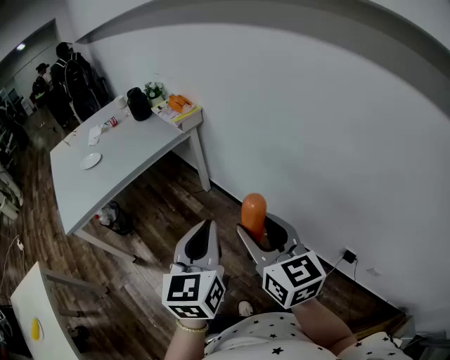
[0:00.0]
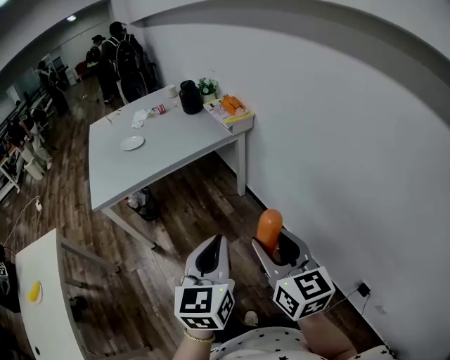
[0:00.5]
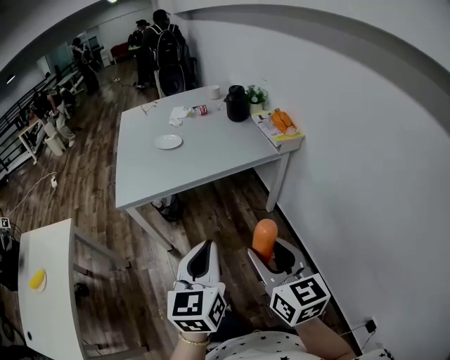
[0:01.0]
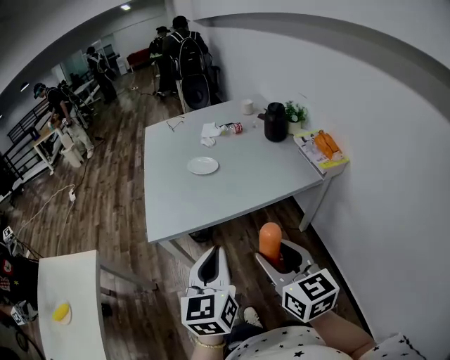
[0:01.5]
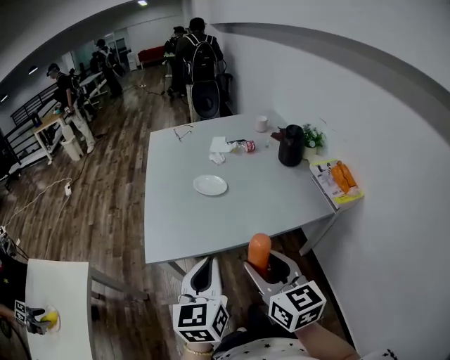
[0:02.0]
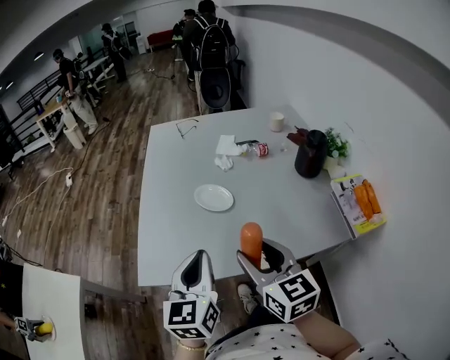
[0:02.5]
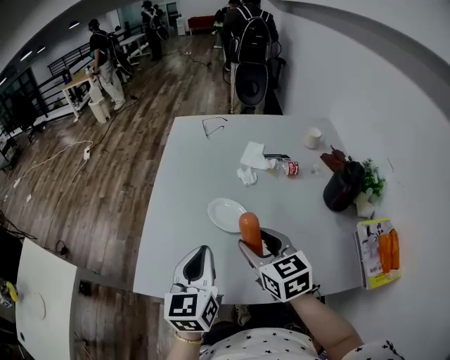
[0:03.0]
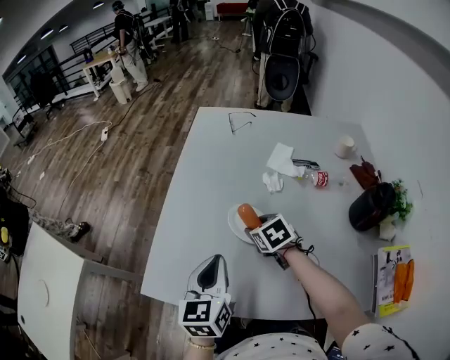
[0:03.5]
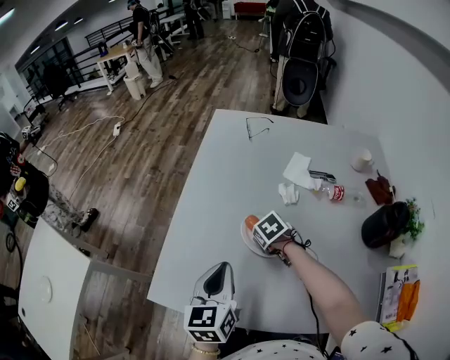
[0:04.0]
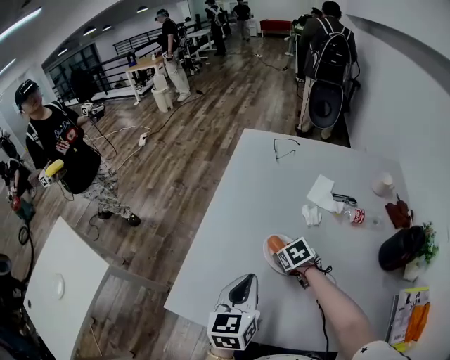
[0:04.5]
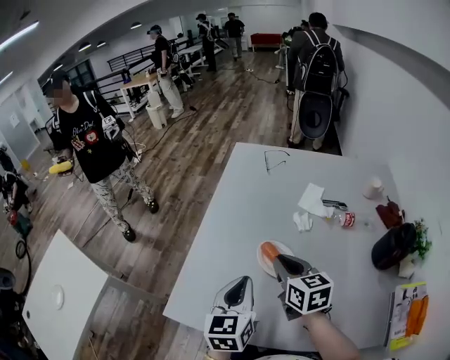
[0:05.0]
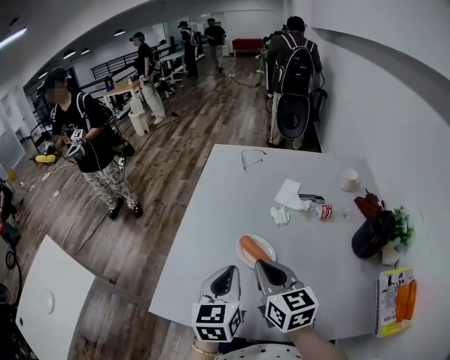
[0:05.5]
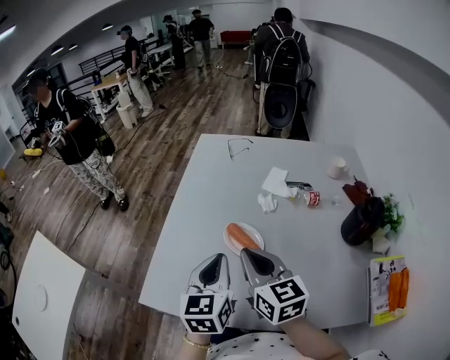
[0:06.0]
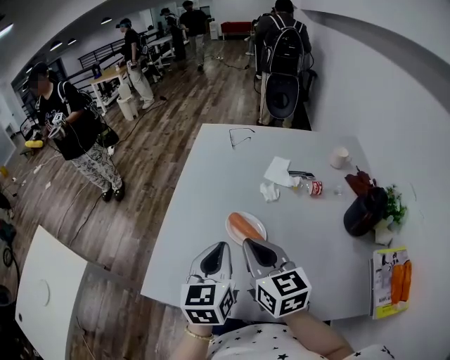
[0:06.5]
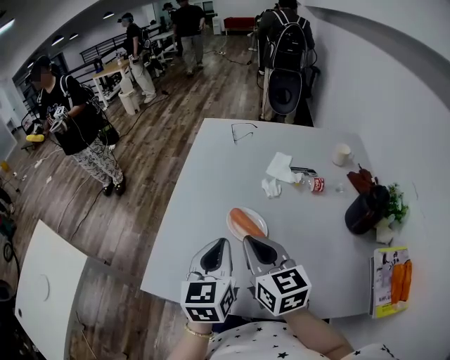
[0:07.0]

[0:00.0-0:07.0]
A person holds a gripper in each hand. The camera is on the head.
0:00.0 to 0:02.0: The two grippers travel together, about 60 cm. The left gripper swivels roughly 30 degrees. Meanwhile the right gripper turns by approximately 30 degrees.
0:02.0 to 0:03.5: The left gripper shifts by some 35 cm, and turns by some 20 degrees. Meanwhile the right gripper ends up some 50 cm from where it was, and tips its fingers downward by roughly 40 degrees.
0:03.5 to 0:05.0: The right gripper moves upward, some 10 cm, tilts its fingers roughly 30 degrees upward, and closes its fingers.
0:05.0 to 0:07.0: The right gripper moves backward and upward, some 10 cm.

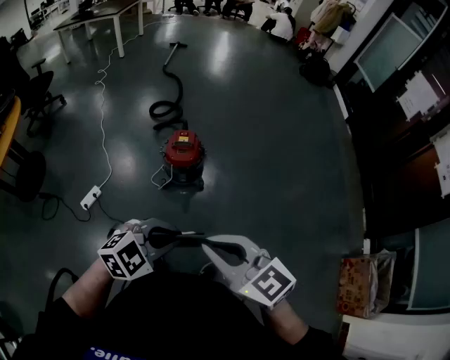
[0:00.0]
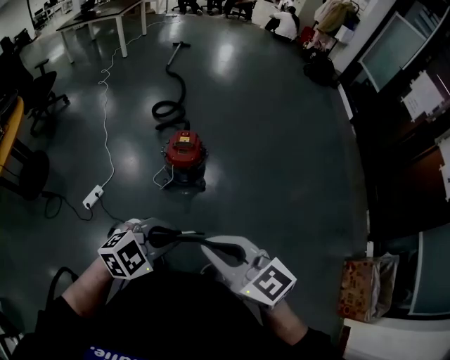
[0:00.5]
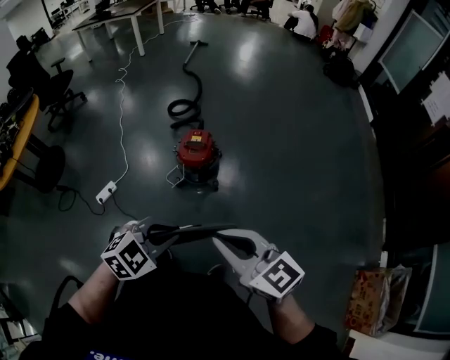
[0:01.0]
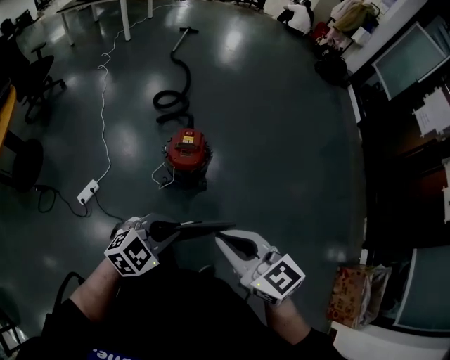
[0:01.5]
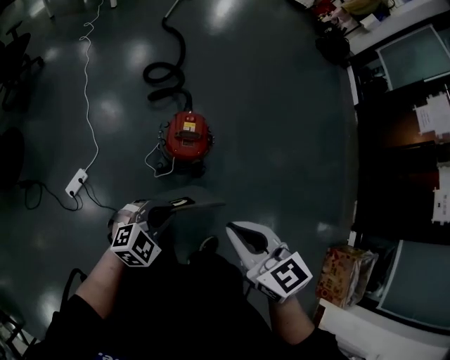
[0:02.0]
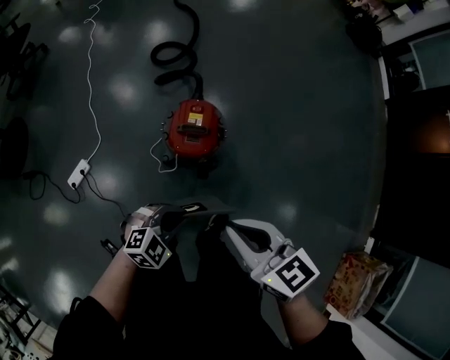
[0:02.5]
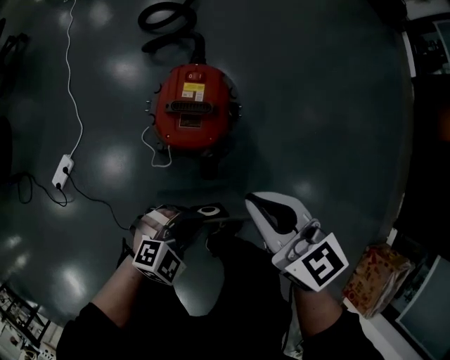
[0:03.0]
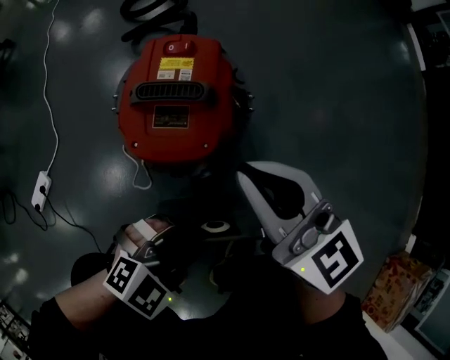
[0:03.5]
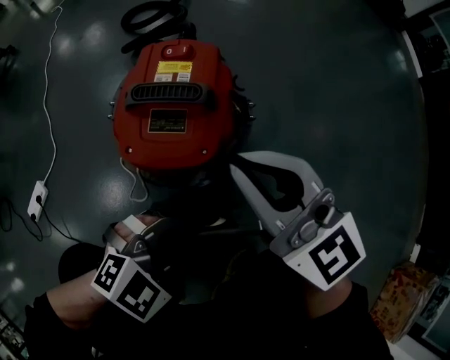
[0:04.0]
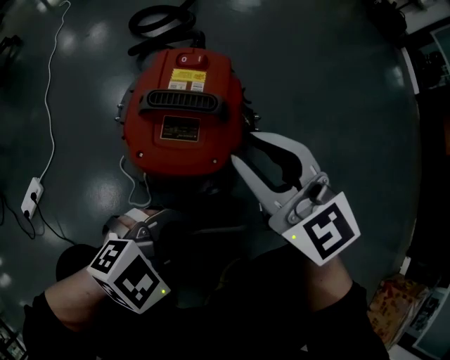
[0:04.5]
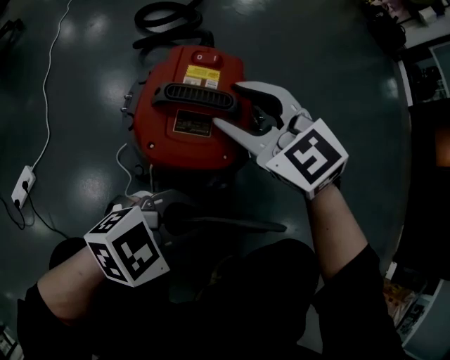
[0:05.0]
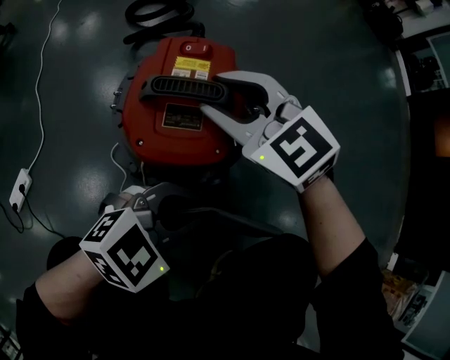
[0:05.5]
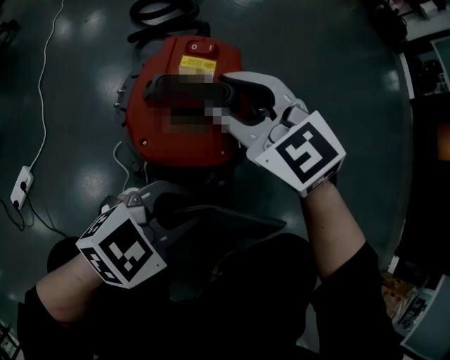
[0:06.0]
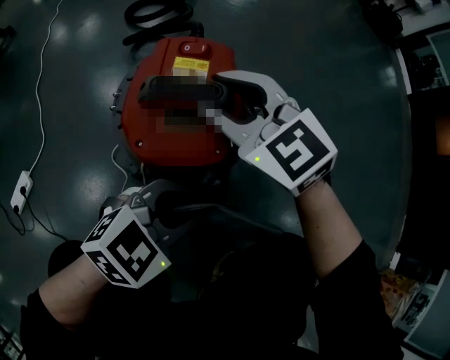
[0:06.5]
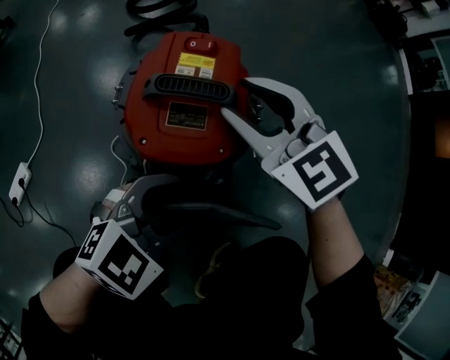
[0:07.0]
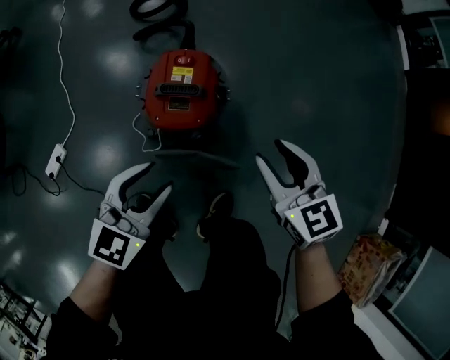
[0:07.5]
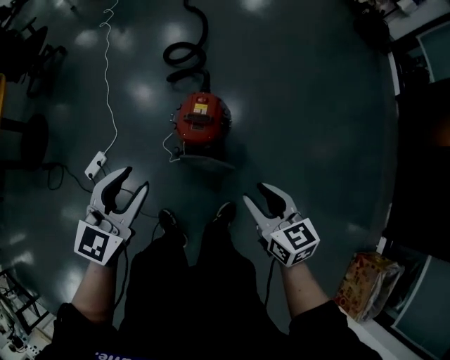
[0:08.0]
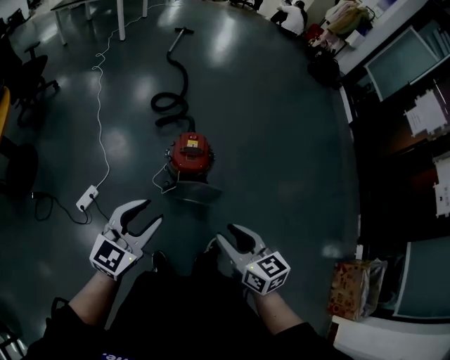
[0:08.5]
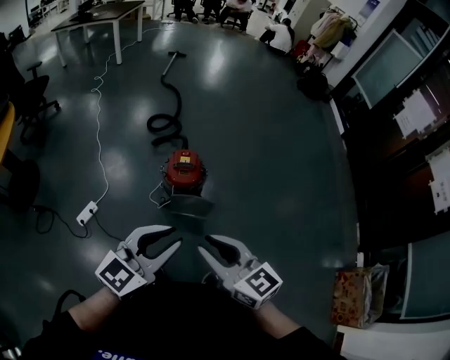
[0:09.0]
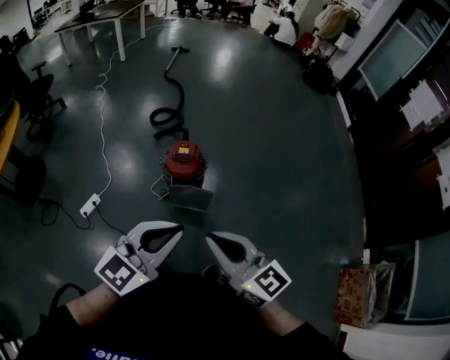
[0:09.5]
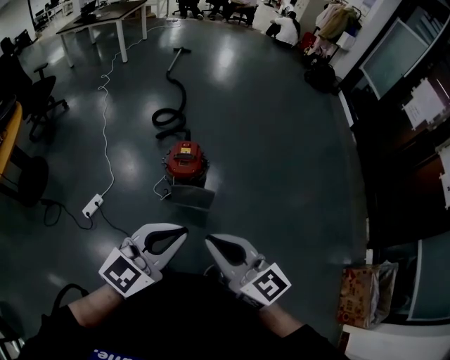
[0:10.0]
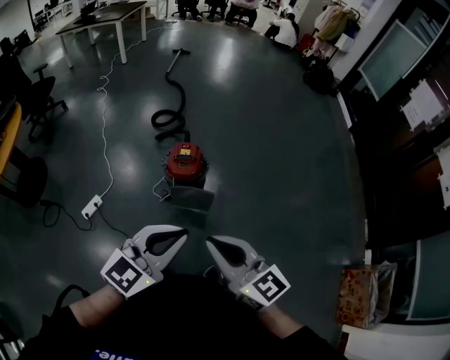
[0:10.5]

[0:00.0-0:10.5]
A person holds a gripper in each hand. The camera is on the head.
0:00.0 to 0:02.0: The right gripper heads forward, covering about 25 cm; the left gripper heads forward, downward and to the left, covering approximately 30 cm.
0:02.0 to 0:04.0: The right gripper moves downward and forward, about 50 cm, and rotates about 30 degrees. Meanwhile the left gripper shifts some 40 cm downward.
0:04.0 to 0:06.5: The right gripper moves approximately 15 cm, changes its angle by about 20 degrees, and opens. The left gripper ends up about 5 cm from where it was.
0:06.5 to 0:08.5: The right gripper is displaced upward and backward by about 60 cm, and rolls clockwise, seen from behind, by some 50 degrees, while the left gripper heads upward, covering roughly 60 cm, and rotates roughly 40 degrees.
0:08.5 to 0:10.5: The left gripper travels to the right, backward and upward by about 20 cm, and closes up; the right gripper goes roughly 15 cm upward and backward, changes its angle by approximately 20 degrees, and closes up.

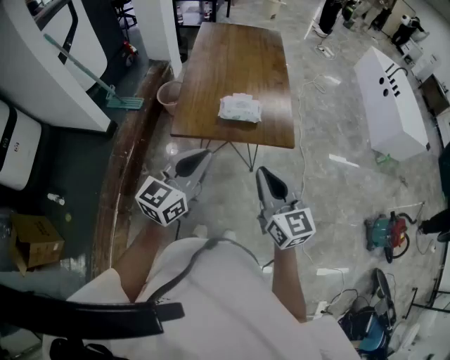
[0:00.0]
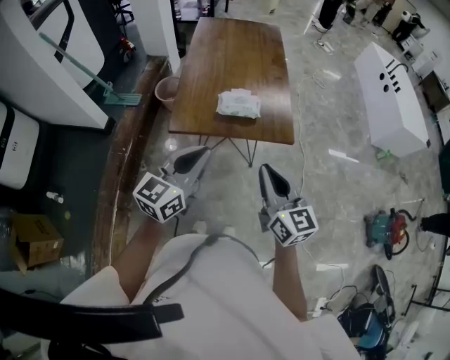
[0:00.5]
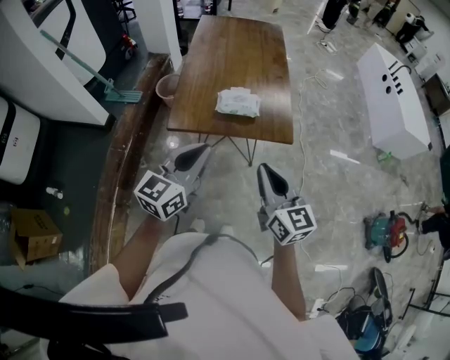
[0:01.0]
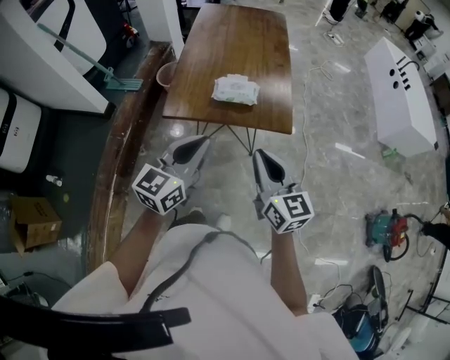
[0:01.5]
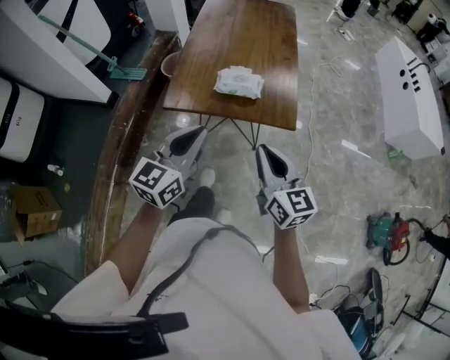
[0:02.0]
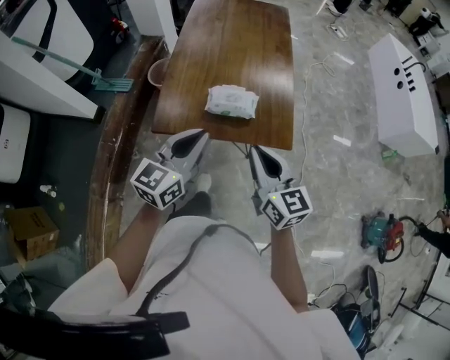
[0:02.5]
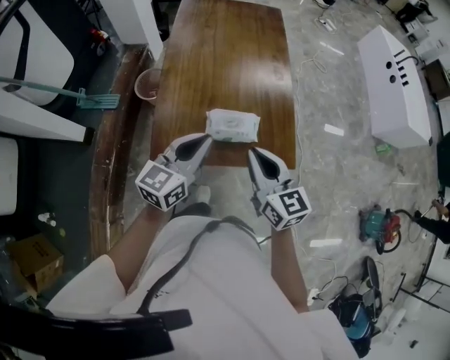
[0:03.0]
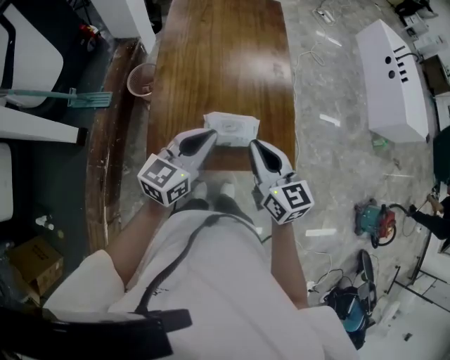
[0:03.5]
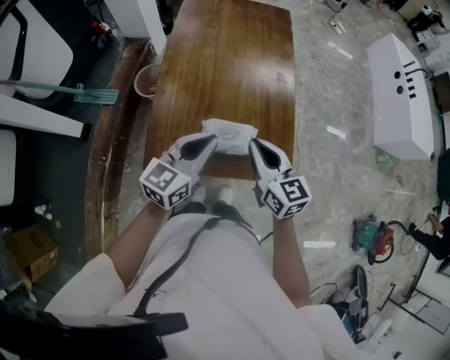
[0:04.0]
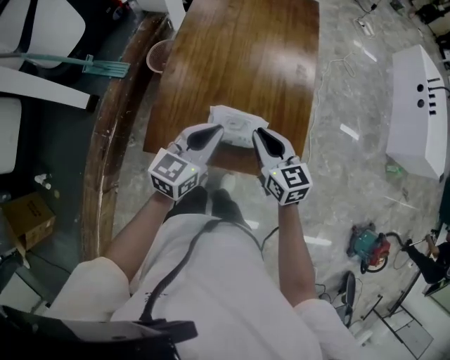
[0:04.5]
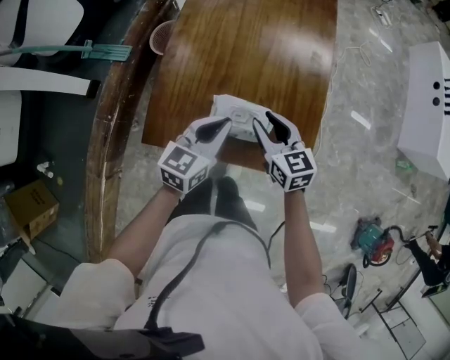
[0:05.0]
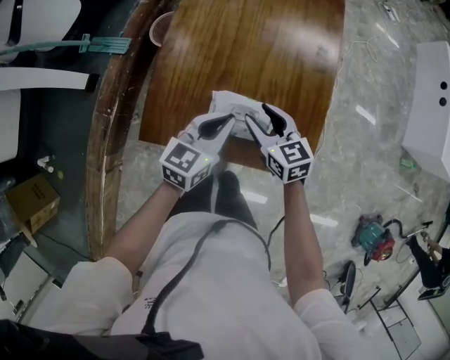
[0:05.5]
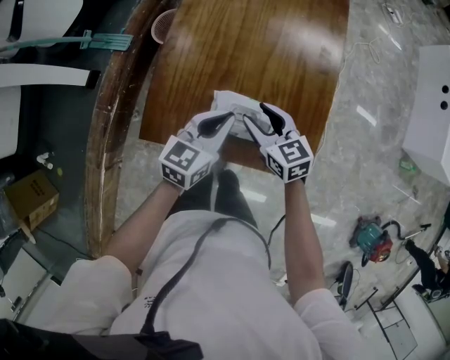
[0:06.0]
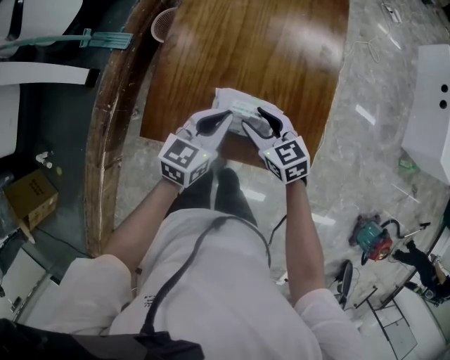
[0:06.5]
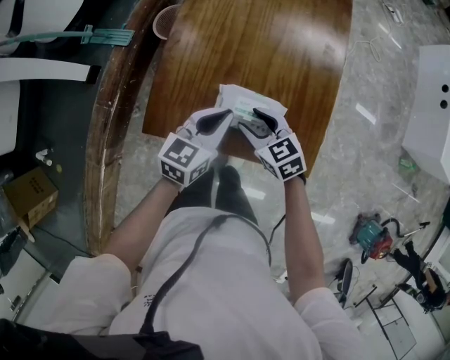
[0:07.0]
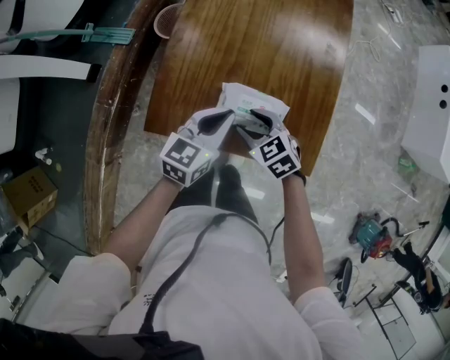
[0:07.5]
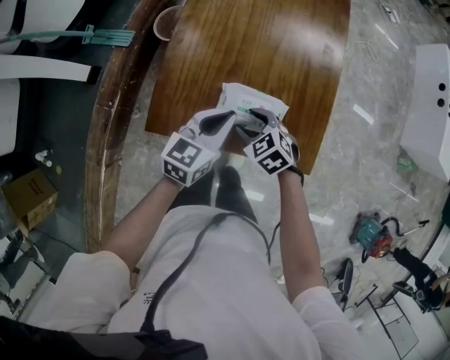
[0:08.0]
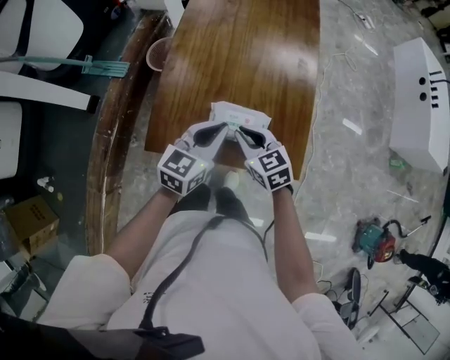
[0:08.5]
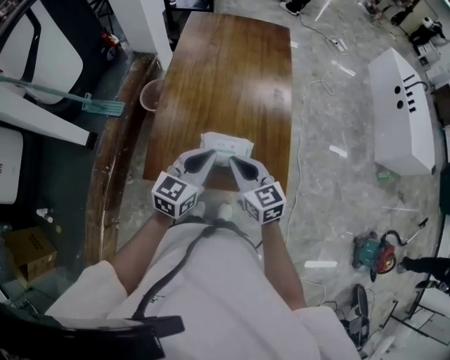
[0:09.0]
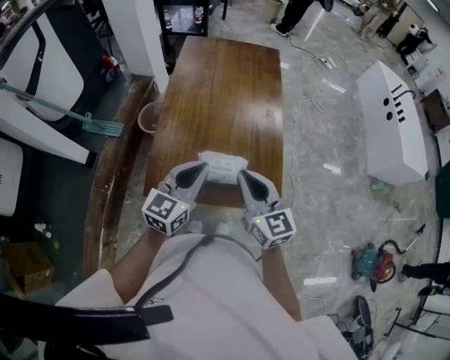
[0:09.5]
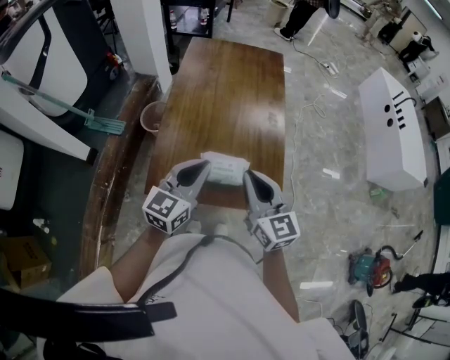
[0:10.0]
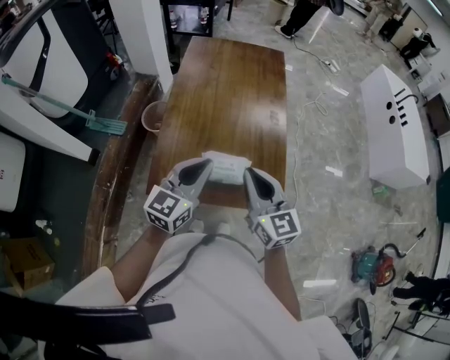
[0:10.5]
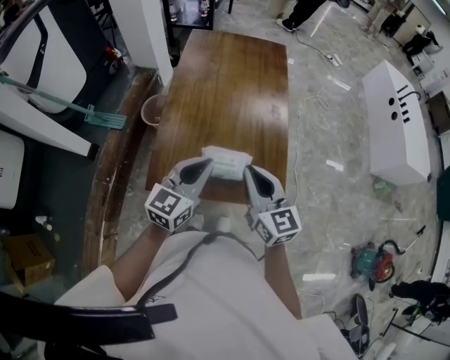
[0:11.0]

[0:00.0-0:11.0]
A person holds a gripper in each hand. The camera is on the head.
0:00.0 to 0:02.0: The left gripper is displaced to the right by roughly 5 cm; the right gripper is displaced to the right and downward by approximately 10 cm.
0:02.0 to 0:03.5: Both grippers travel together forward, about 30 cm.
0:03.5 to 0:05.5: Both grippers move downward and forward, roughly 20 cm. The right gripper turns by roughly 30 degrees, and opens.
0:05.5 to 0:07.5: The right gripper goes roughly 5 cm to the left, and turns by about 30 degrees.
0:07.5 to 0:09.0: The grippers both shift upward by roughly 15 cm. The right gripper changes its angle by roughly 40 degrees, and closes its fingers.
0:09.0 to 0:11.0: The right gripper moves upward, about 10 cm, while the left gripper shifts approximately 5 cm upward.
